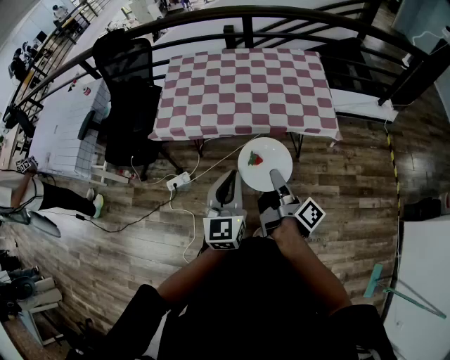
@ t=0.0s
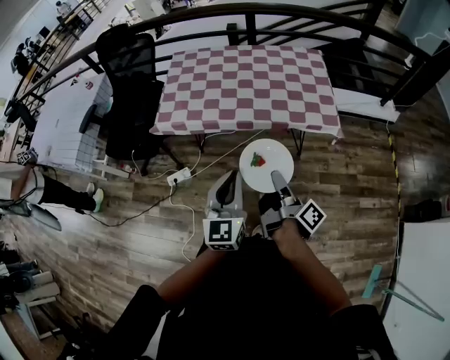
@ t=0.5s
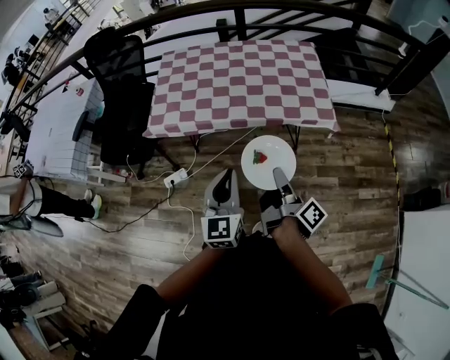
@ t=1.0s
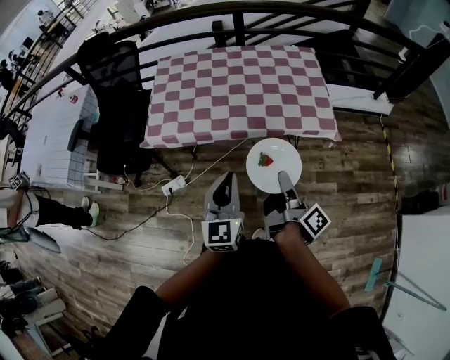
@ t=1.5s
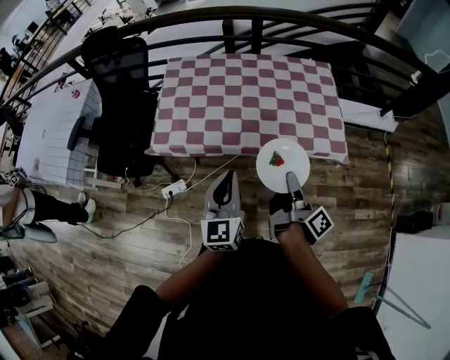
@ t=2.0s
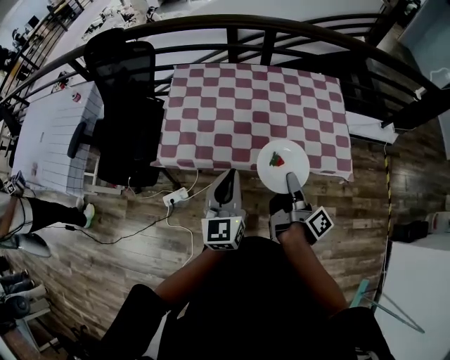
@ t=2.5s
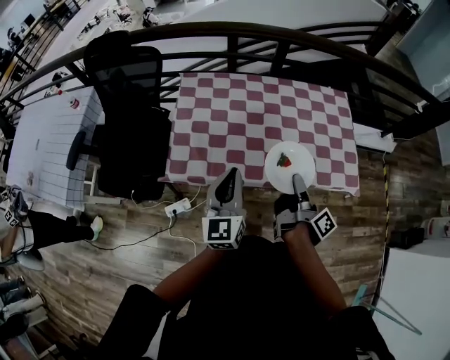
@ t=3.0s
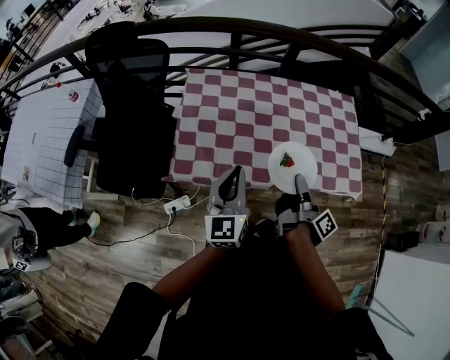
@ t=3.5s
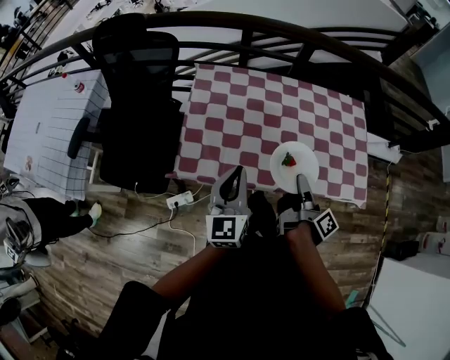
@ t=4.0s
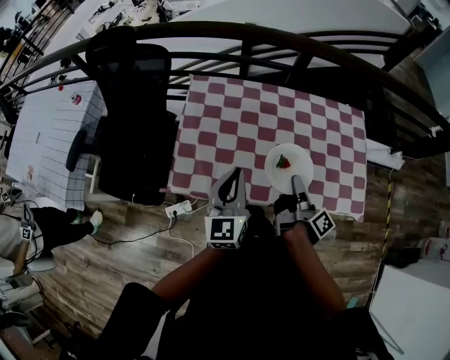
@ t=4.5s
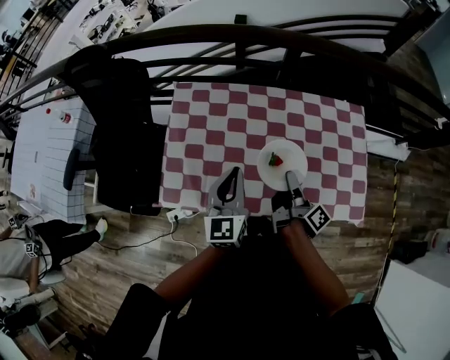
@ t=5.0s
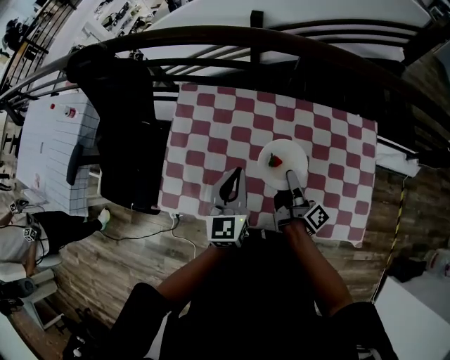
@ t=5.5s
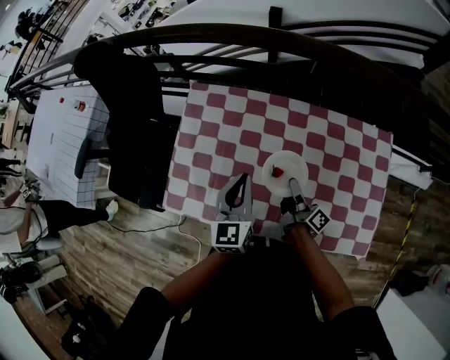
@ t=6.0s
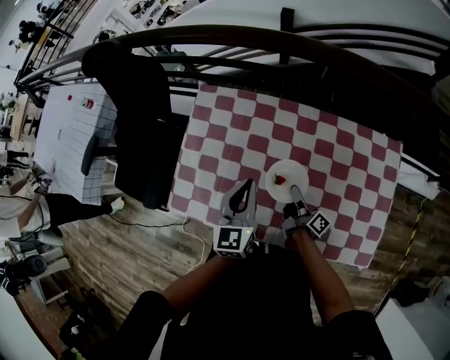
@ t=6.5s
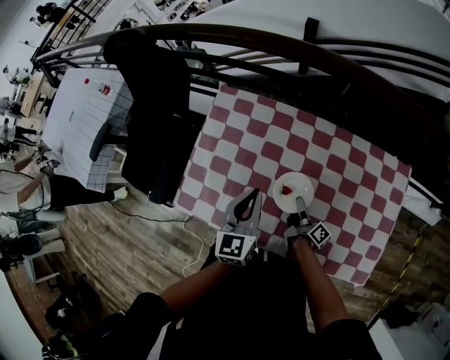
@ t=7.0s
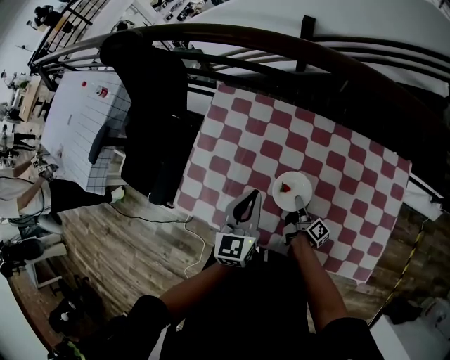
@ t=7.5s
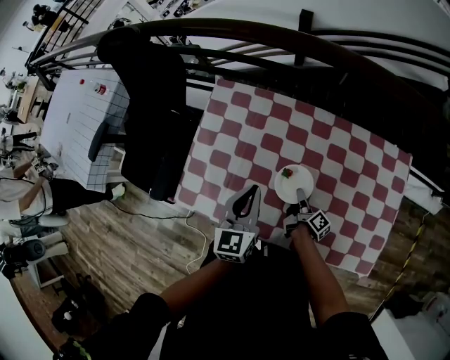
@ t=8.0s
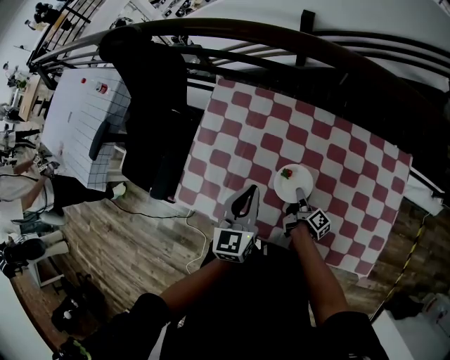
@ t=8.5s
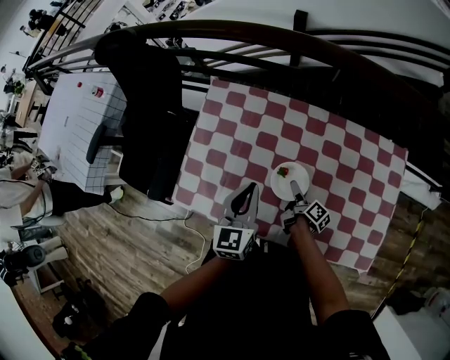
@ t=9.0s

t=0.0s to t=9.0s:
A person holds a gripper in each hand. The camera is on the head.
t=0.0s to t=2.0s: The left gripper ends up some 15 cm from where it was.
t=2.0s to t=4.5s: The left gripper moves some 30 cm.
t=4.5s to t=7.0s: The left gripper changes place by approximately 20 cm.

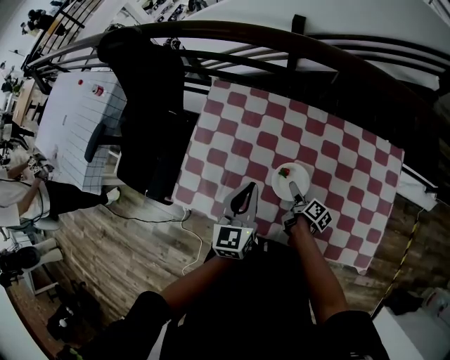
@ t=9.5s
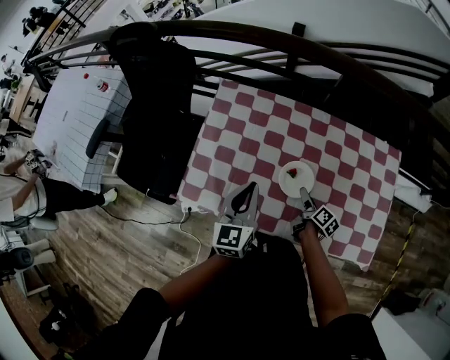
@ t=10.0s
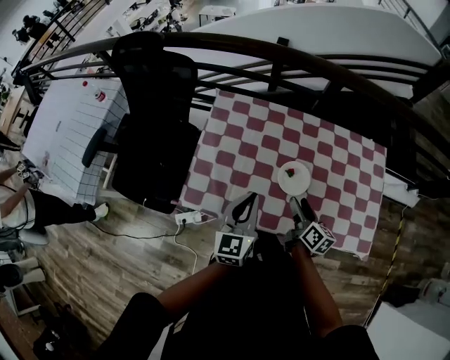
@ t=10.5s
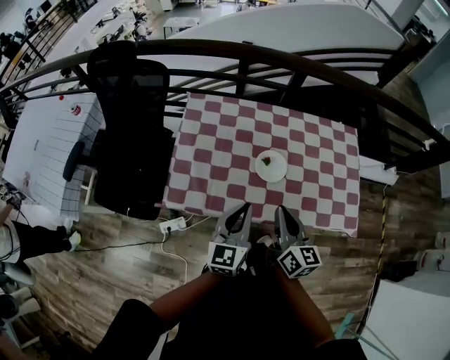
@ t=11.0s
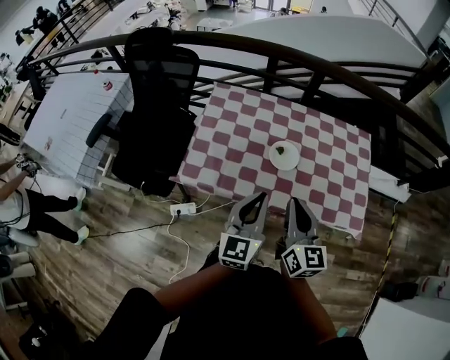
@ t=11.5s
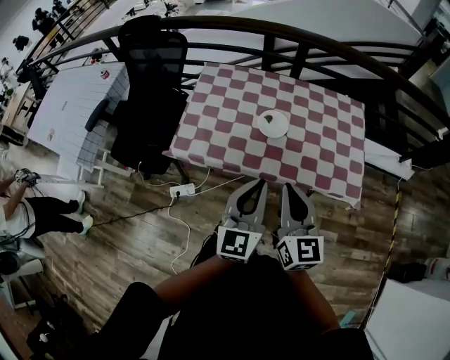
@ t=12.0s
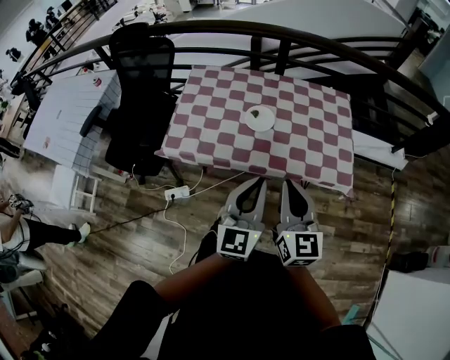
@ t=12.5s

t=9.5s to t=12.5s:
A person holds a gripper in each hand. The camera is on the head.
t=9.5s to t=11.0s: The left gripper ends up roughly 20 cm from where it was.
t=11.0s to t=12.5s: The left gripper ends up some 25 cm from where it was.

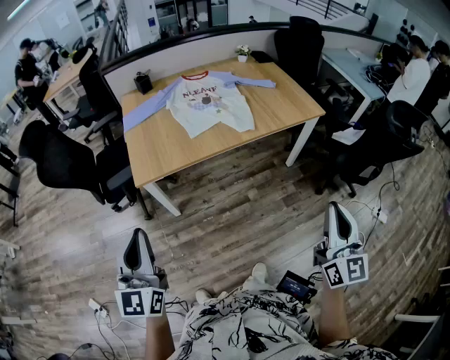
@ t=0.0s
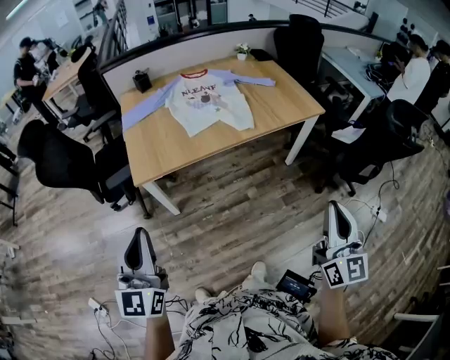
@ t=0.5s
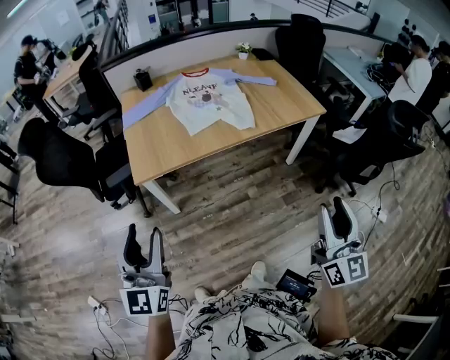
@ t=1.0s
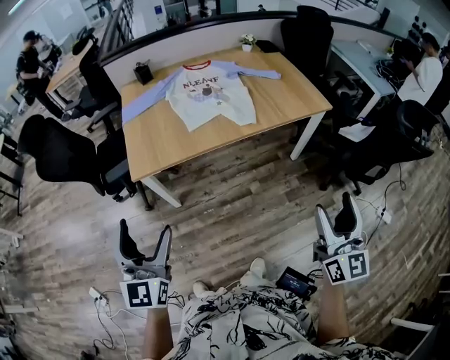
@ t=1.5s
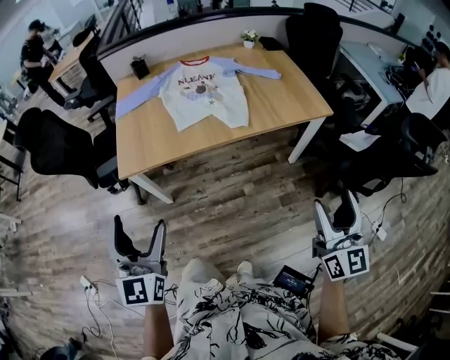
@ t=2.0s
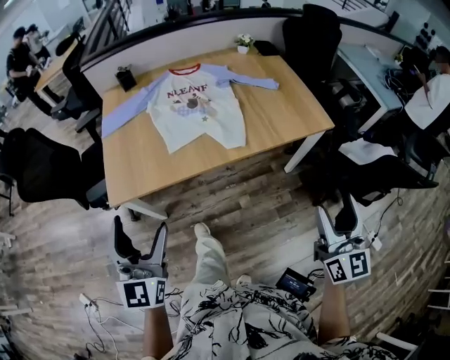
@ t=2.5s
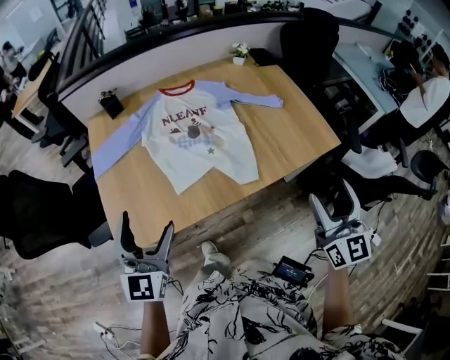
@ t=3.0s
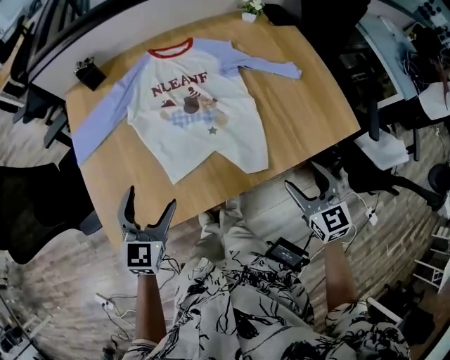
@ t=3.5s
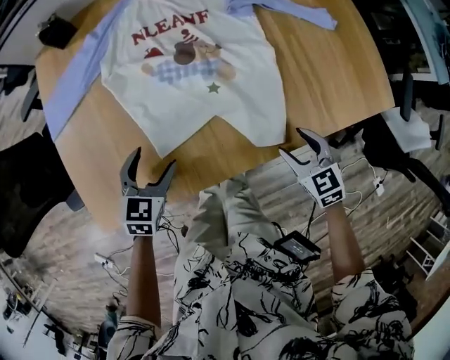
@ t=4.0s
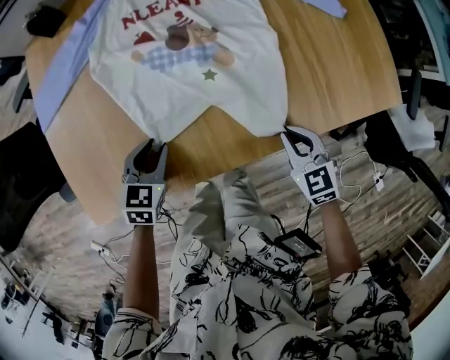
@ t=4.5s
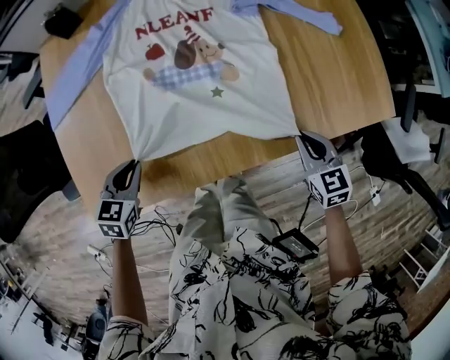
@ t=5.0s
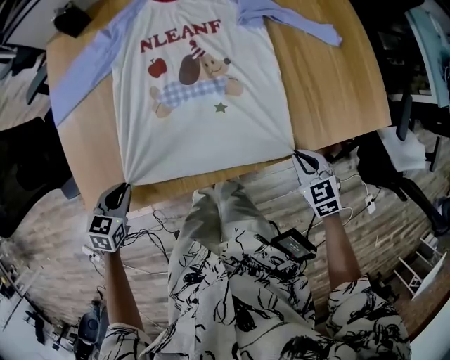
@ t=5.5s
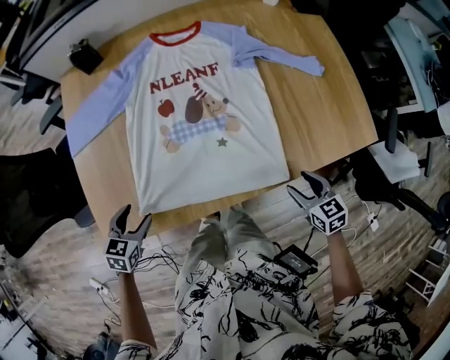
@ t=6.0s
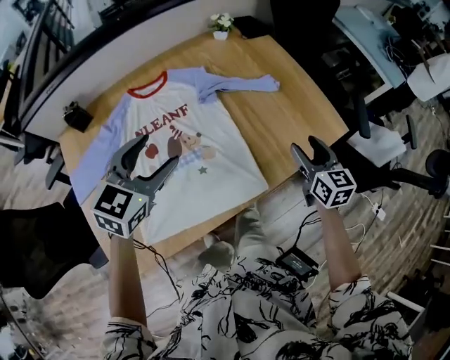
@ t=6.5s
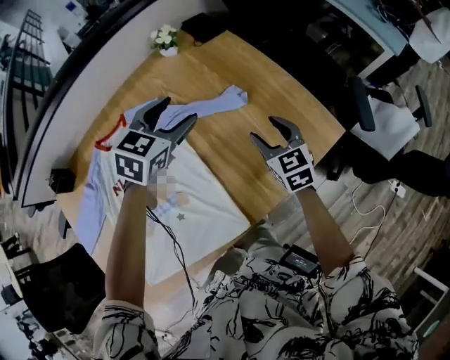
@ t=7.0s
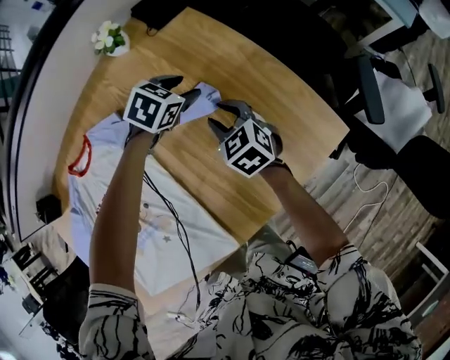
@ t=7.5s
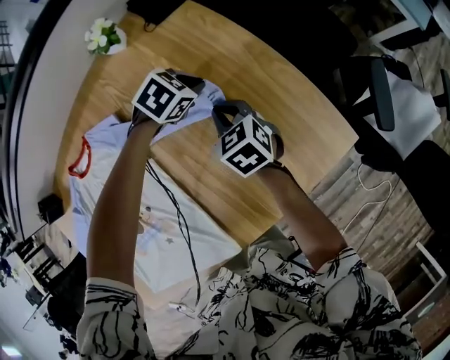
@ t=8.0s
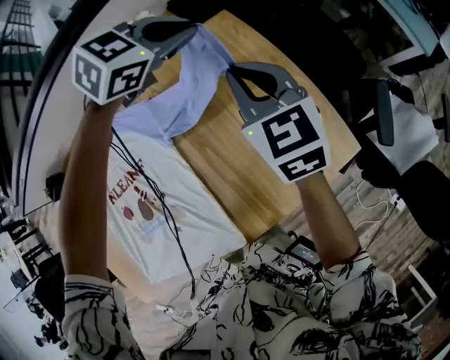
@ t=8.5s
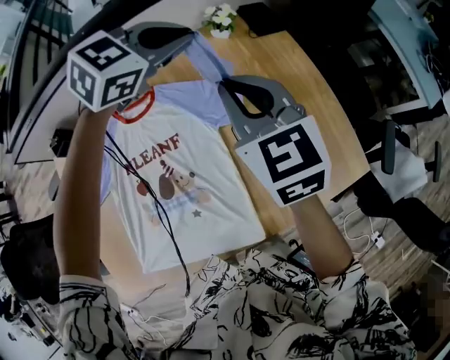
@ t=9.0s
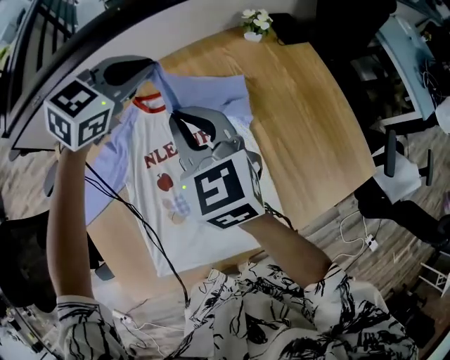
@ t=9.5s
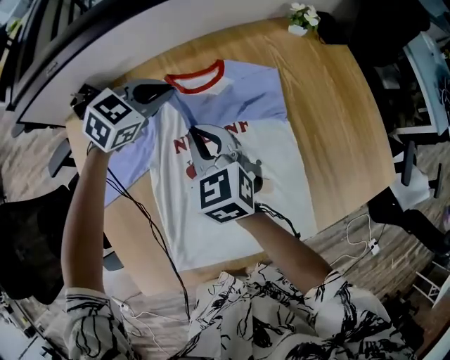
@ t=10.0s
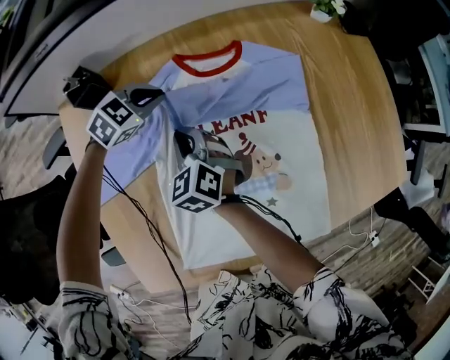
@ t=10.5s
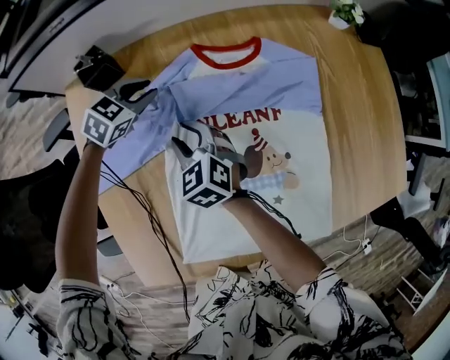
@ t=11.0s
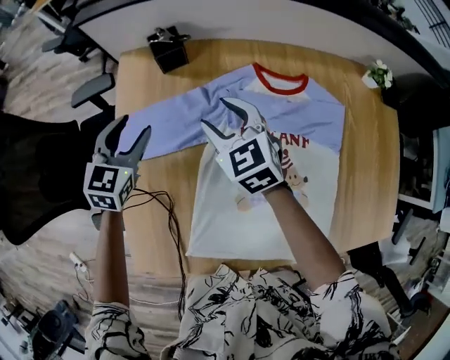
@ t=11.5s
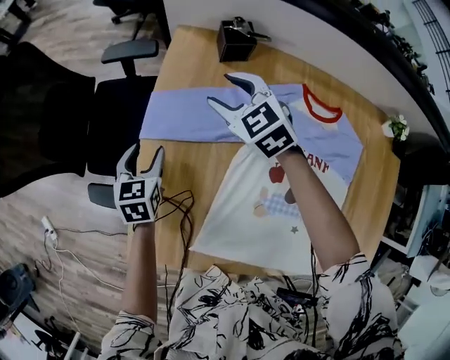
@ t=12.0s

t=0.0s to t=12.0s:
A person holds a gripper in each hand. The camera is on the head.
t=0.0s to t=2.0s: Both grippers move to the right and forward, approximately 15 cm. The right gripper opens. The left gripper opens up.
t=2.0s to t=4.0s: Both grippers are carried forward, approximately 50 cm. The two grippers go roughly 35 cm downward. The left gripper angles its fingers downward, by about 40 degrees. Meanwhile the right gripper tilts its fingers some 50 degrees downward.
t=4.0s to t=6.0s: The right gripper moves approximately 5 cm, and closes and opens again. Meanwhile the left gripper travels to the left and backward by roughly 15 cm, and closes, then opens again.
t=6.0s to t=8.0s: The pair of grippers is taken approximately 60 cm. The right gripper closes its fingers, while the left gripper changes its angle by approximately 60 degrees, and closes its fingers.
t=8.0s to t=10.0s: The pair of grippers is taken to the left and backward, some 50 cm. The right gripper swivels roughly 20 degrees. The left gripper swivels about 30 degrees.
t=10.0s to t=12.0s: The left gripper goes up and down, about 15 cm each way, reversing 2 times, swivels approximately 80 degrees, and opens up. Meanwhile the right gripper travels downward and back again, approximately 15 cm each way, turns by about 50 degrees, and opens its fingers.

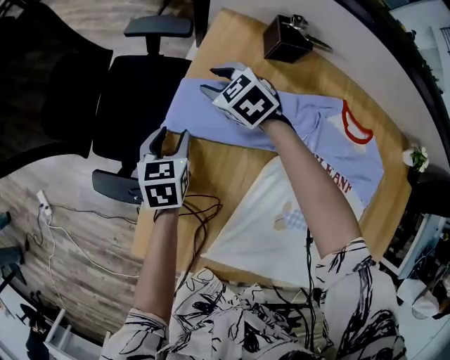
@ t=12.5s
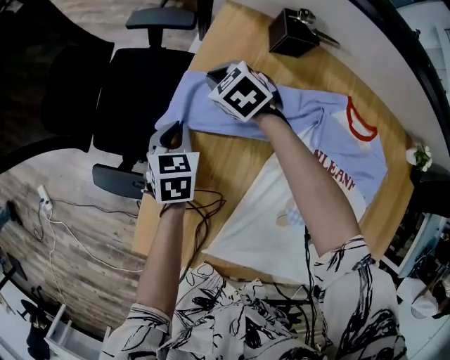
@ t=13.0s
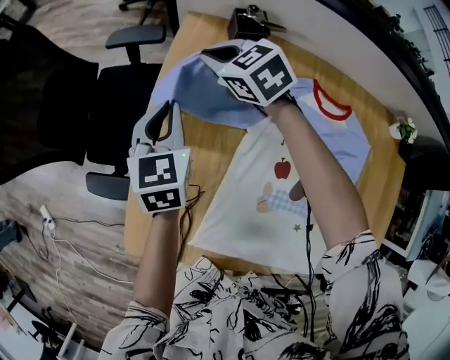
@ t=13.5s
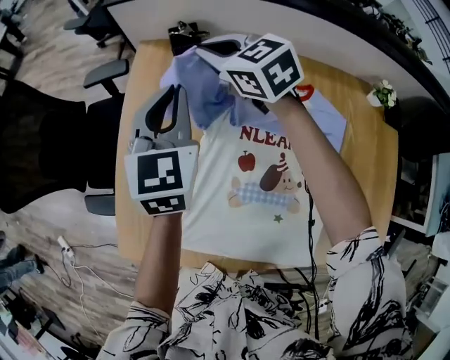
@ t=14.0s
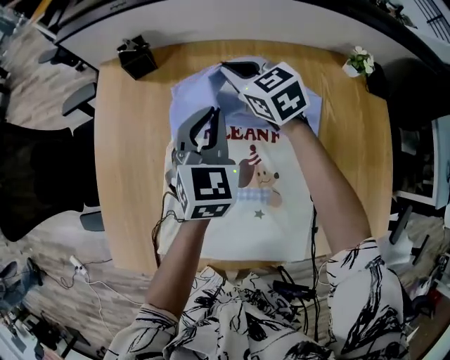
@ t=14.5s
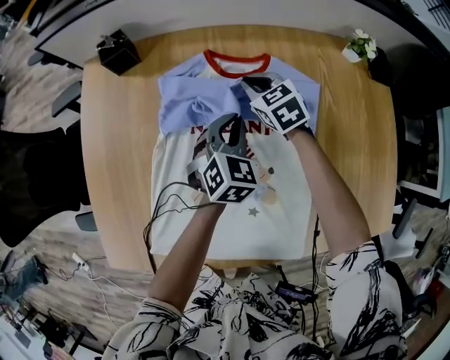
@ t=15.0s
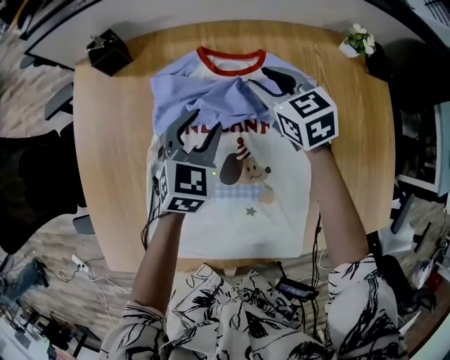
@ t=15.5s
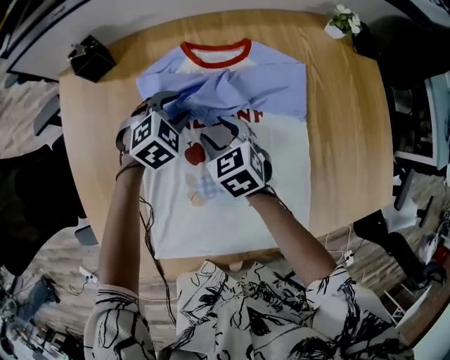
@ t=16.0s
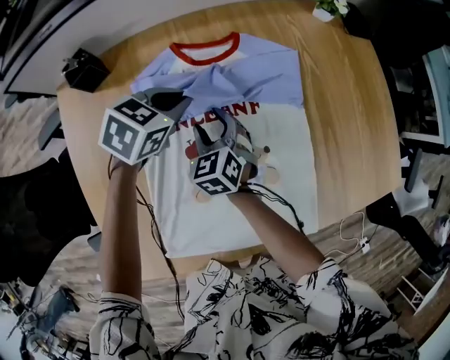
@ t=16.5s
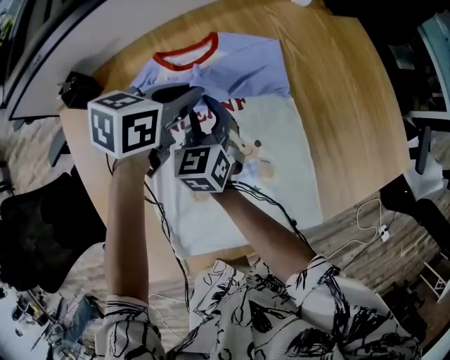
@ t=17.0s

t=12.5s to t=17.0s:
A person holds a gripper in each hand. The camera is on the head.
t=12.5s to t=14.5s: The pair of grippers is taken approximately 40 cm. The right gripper swivels approximately 40 degrees, and closes, while the left gripper swivels roughly 40 degrees, and closes.
t=14.5s to t=17.0s: The left gripper moves approximately 20 cm downward and comes back, swivels some 60 degrees, and opens, then closes once more. Meanwhile the right gripper goes up and down, approximately 15 cm each way, reversing 3 times, rotates approximately 50 degrees, and opens.
